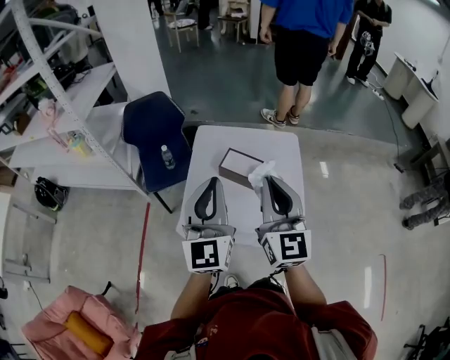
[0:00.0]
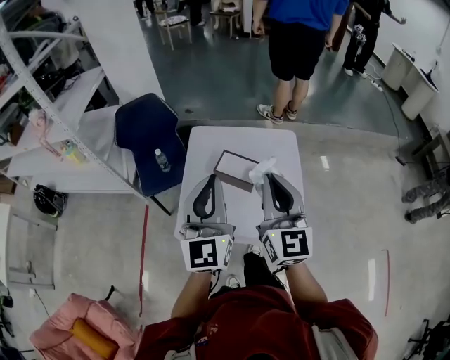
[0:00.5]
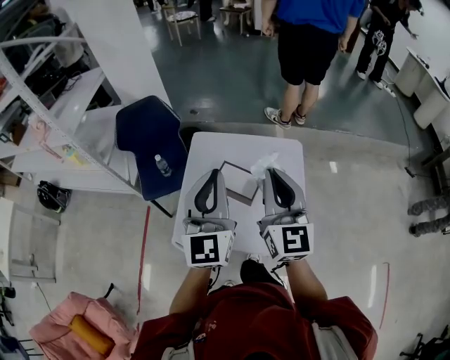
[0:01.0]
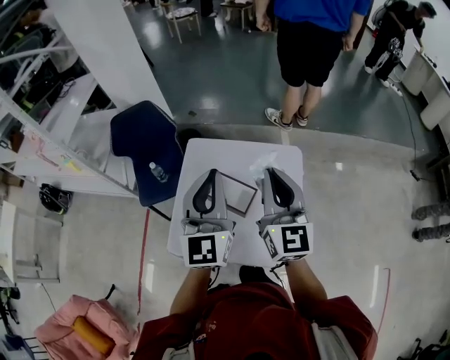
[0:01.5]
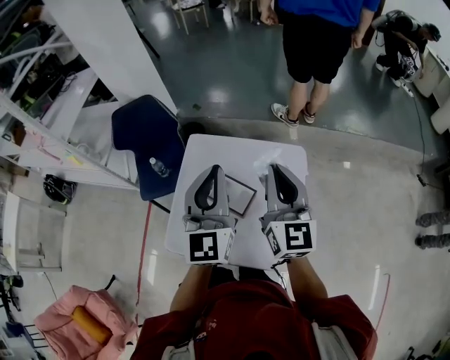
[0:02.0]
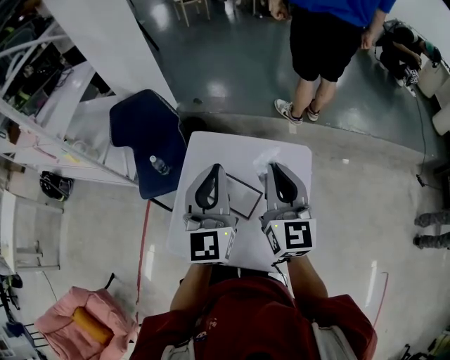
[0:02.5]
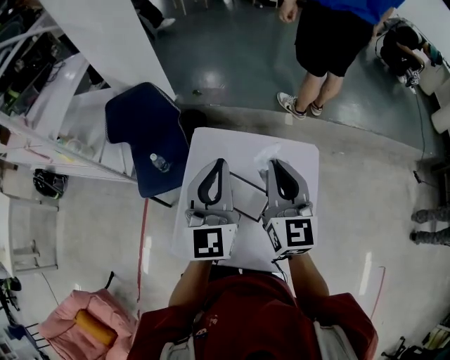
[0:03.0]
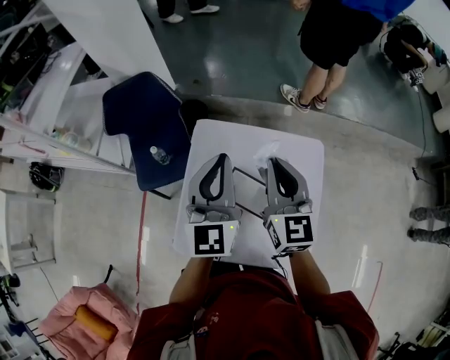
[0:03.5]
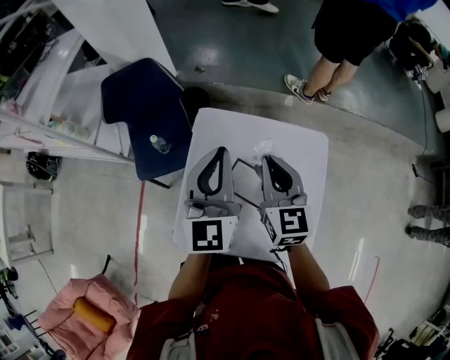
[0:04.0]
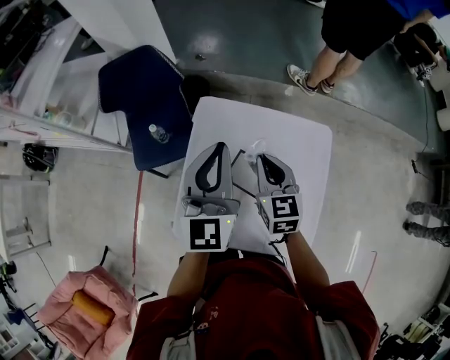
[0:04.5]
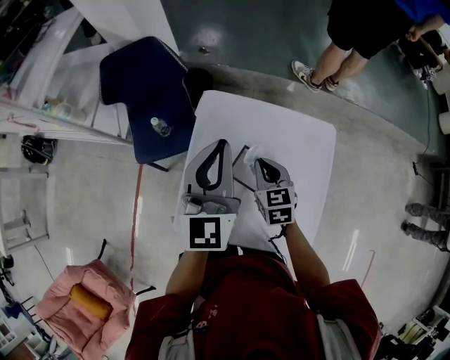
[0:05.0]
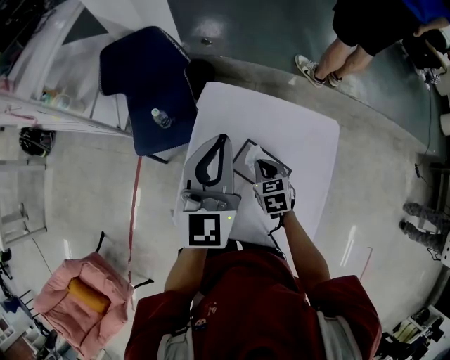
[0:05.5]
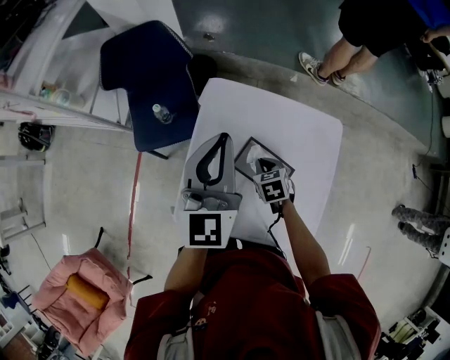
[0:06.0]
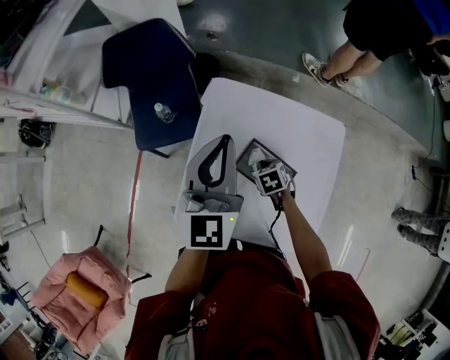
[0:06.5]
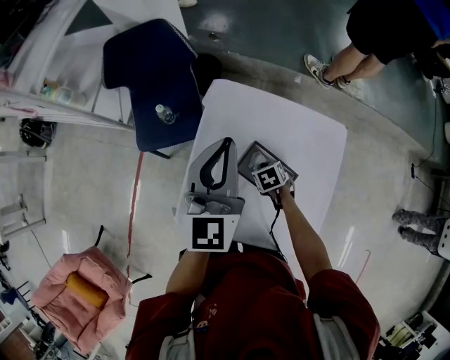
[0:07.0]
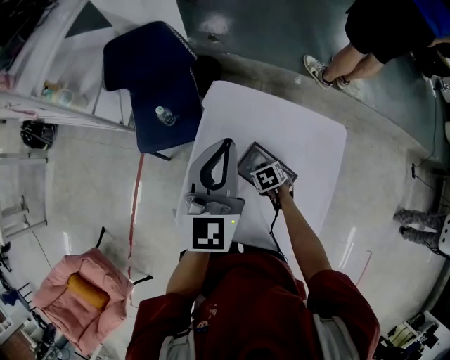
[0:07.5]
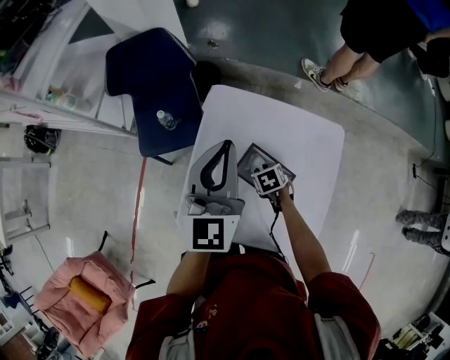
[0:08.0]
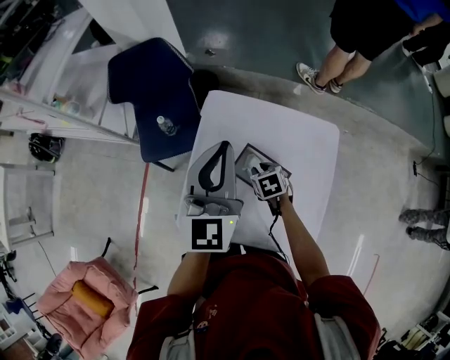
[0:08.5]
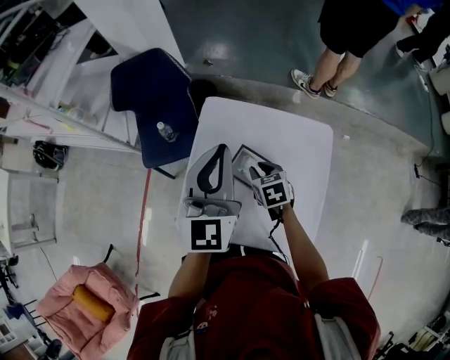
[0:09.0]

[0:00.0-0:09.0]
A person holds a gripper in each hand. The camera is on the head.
0:00.0 to 0:02.0: The two grippers go approximately 30 cm forward and to the right.
0:02.0 to 0:04.5: The right gripper goes roughly 25 cm downward, to the left and forward, and changes its angle by roughly 30 degrees. The left gripper moves to the left, forward and downward, some 20 cm.
0:04.5 to 0:07.0: The right gripper is displaced downward by approximately 30 cm, and points its fingers some 50 degrees further downward. The left gripper shifts by approximately 5 cm.
0:07.0 to 0:09.0: The right gripper shifts approximately 15 cm upward, turns by about 20 degrees, and opens up. The left gripper shifts by roughly 10 cm.

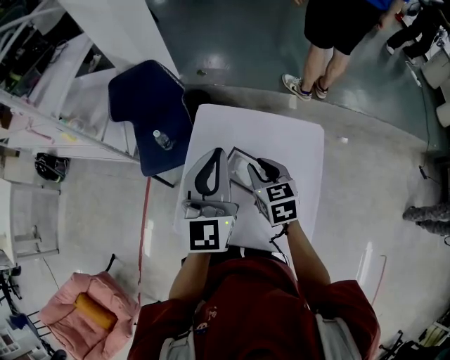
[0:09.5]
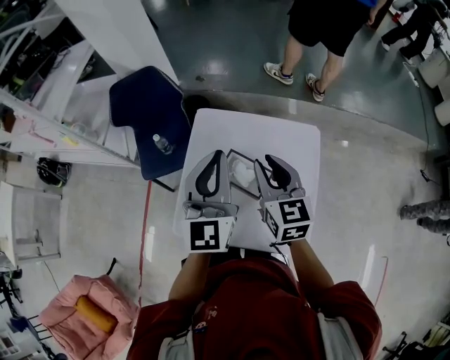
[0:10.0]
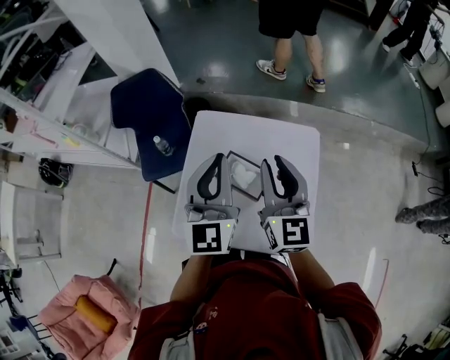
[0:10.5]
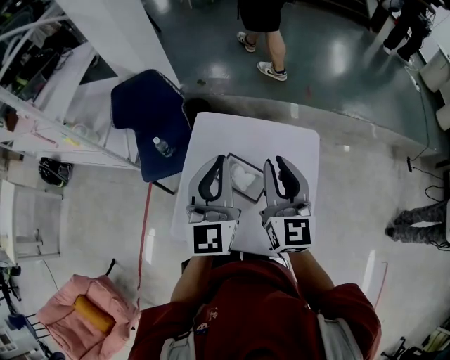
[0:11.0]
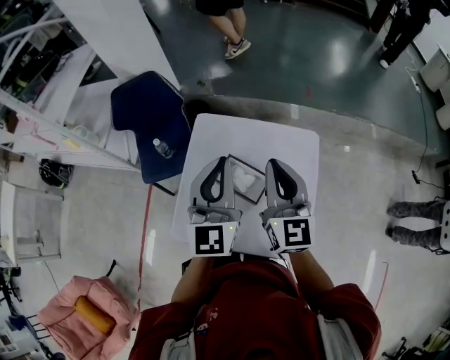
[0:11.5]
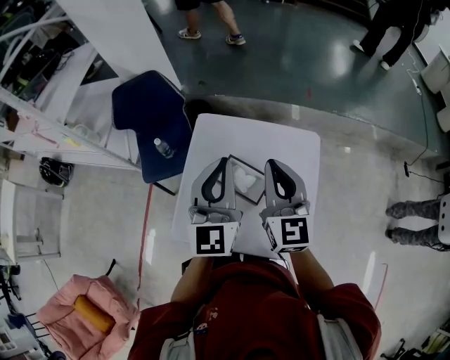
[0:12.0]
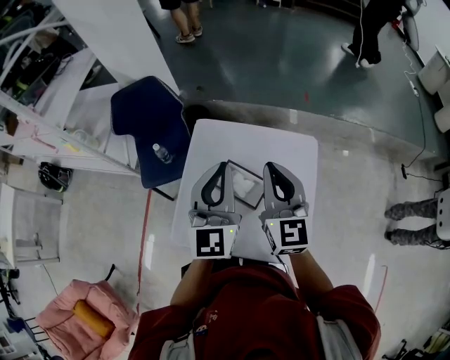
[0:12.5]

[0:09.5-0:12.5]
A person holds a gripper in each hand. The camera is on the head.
0:09.5 to 0:11.0: The right gripper is displaced upward and to the right by about 15 cm, and points its fingers roughly 30 degrees further upward.
0:11.0 to 0:12.5: The grippers stay close to where they were, moving slightly.

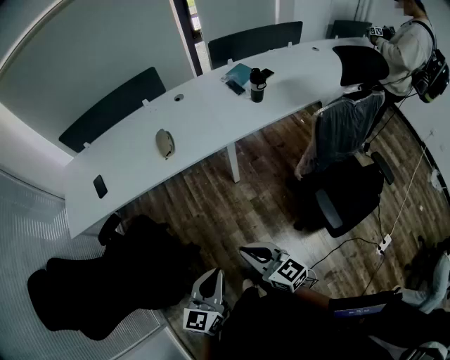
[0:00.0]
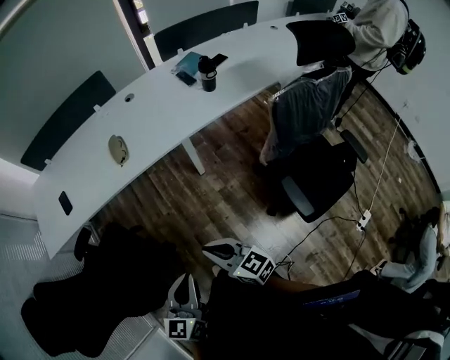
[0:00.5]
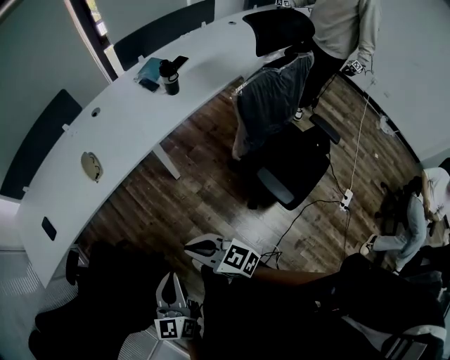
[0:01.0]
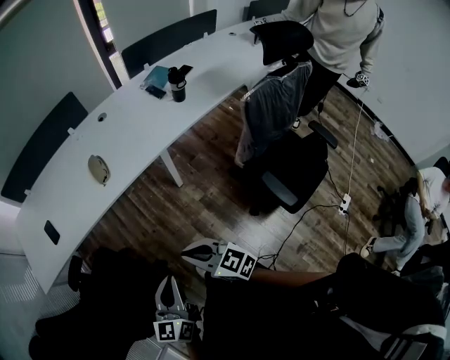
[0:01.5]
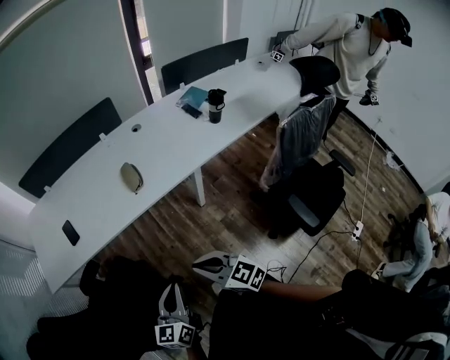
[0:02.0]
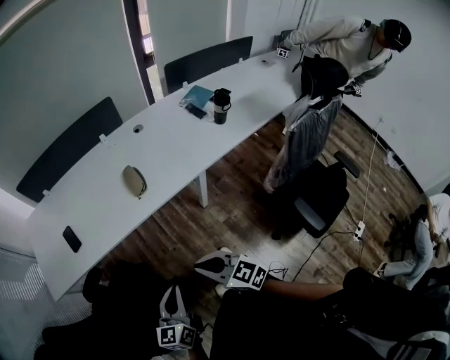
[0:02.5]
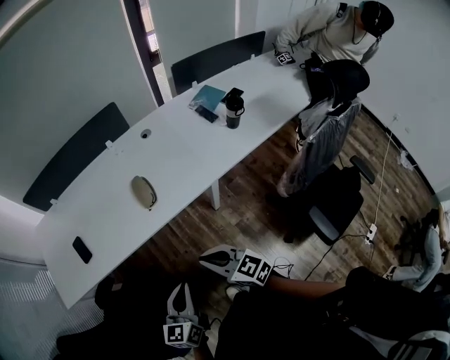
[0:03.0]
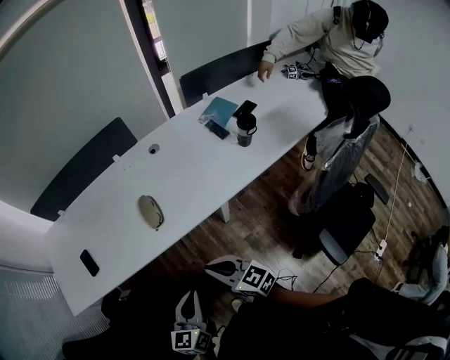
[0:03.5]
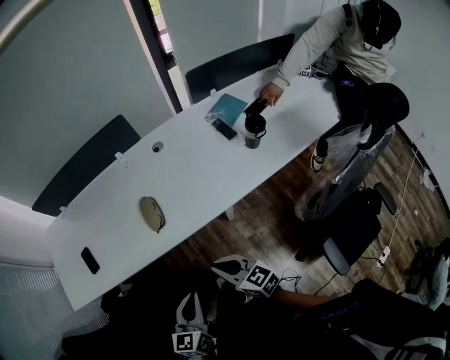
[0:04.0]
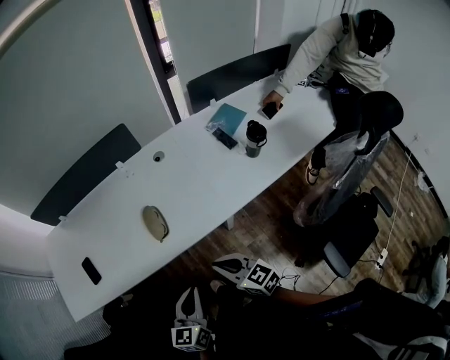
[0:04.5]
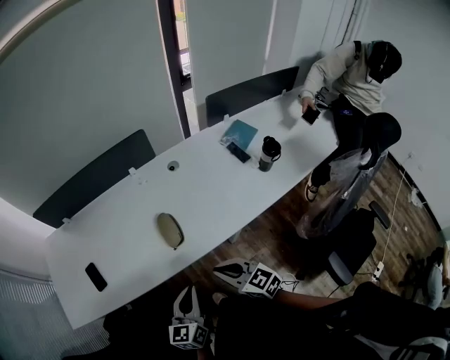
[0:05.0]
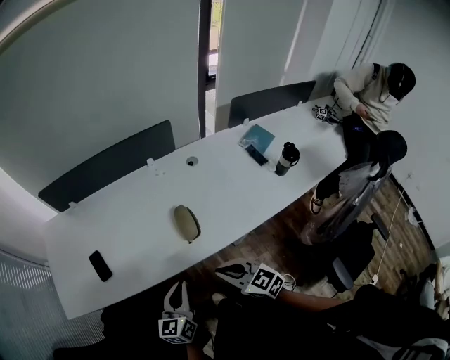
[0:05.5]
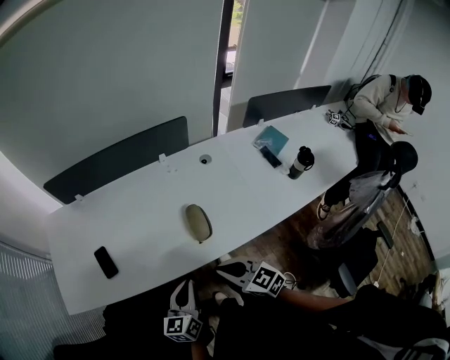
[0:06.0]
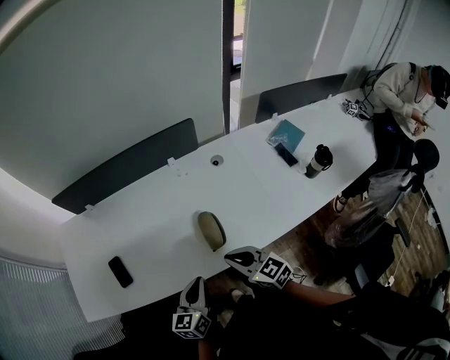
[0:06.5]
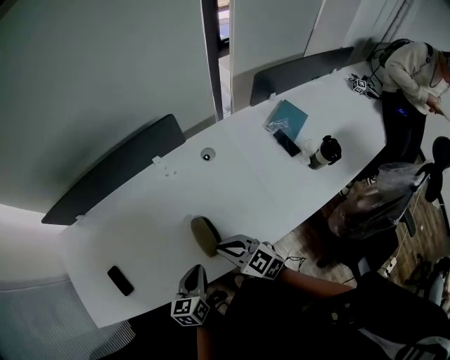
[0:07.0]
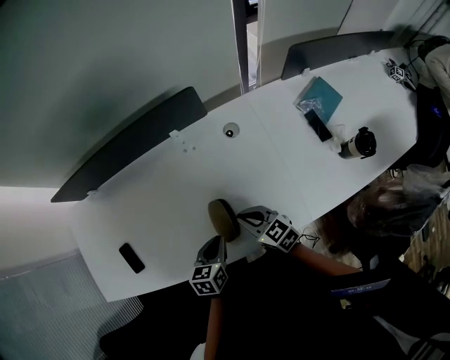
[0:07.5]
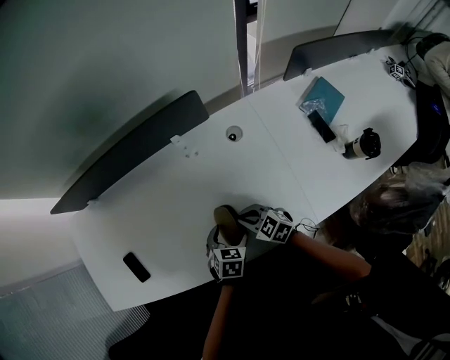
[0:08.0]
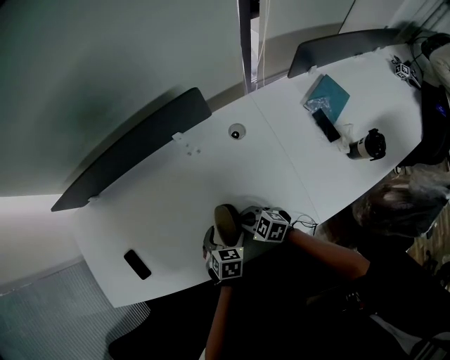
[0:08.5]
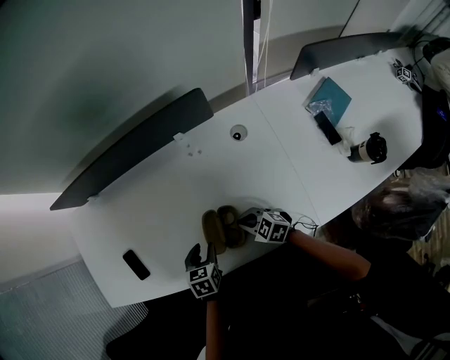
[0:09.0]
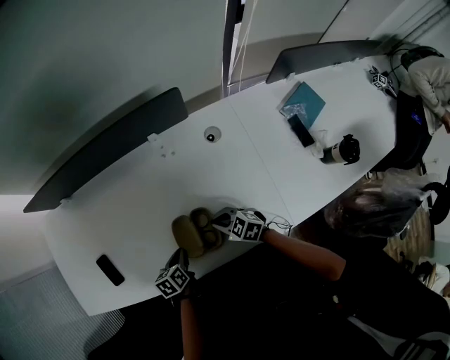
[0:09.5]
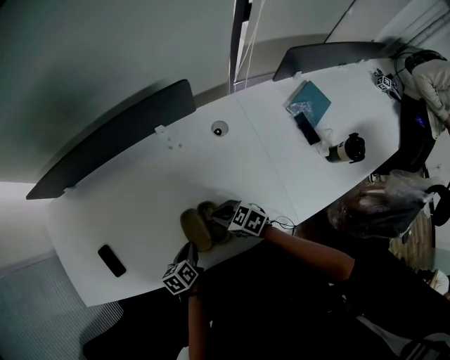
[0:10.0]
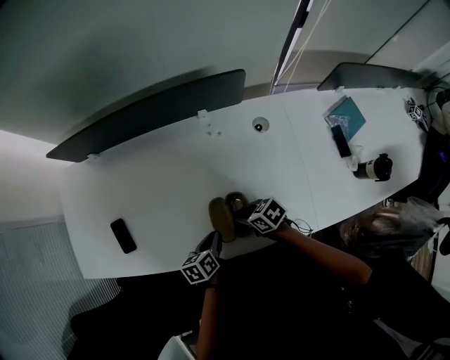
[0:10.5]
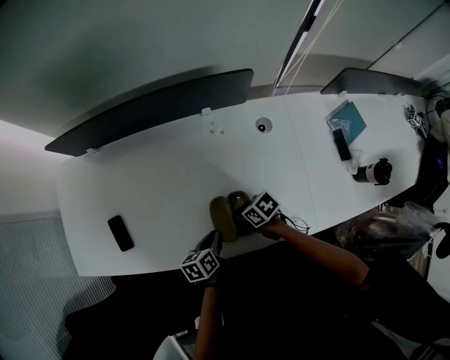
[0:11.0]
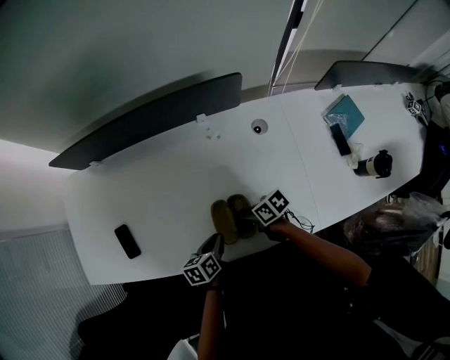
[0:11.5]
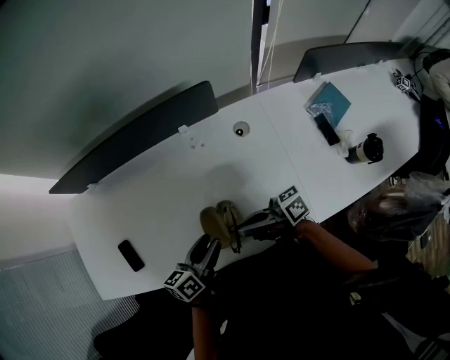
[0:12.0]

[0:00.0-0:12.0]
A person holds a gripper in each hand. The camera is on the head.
0:00.0 to 0:02.0: The grippers both shift to the left and forward by some 20 cm.
0:02.0 to 0:04.0: Both grippers travel together forward and to the right, approximately 25 cm.
0:04.0 to 0:06.0: The two grippers go approximately 20 cm to the left and forward.
0:06.0 to 0:08.0: Both grippers travel together forward, downward and to the right, about 30 cm. The left gripper points its fingers roughly 50 degrees further downward, and opens up.
0:08.0 to 0:10.0: The left gripper shifts approximately 10 cm to the left, rotates around the line of its fingers by roughly 40 degrees, counterclockwise from behind, and closes.
0:10.0 to 0:12.0: Both grippers move upward, about 15 cm. The left gripper angles its fingers upward, by some 30 degrees, and opens its fingers, while the right gripper tips its fingers upward by some 50 degrees.

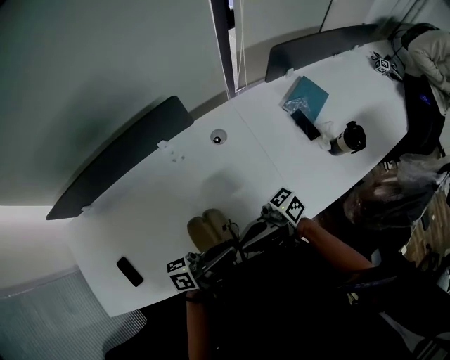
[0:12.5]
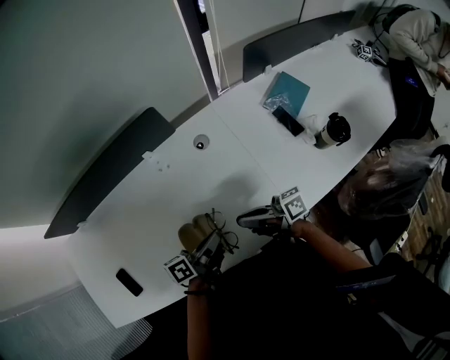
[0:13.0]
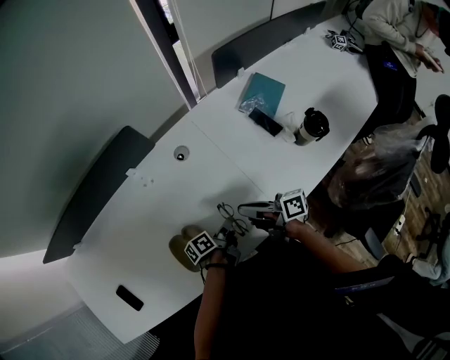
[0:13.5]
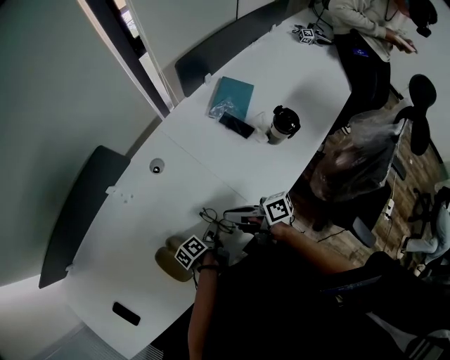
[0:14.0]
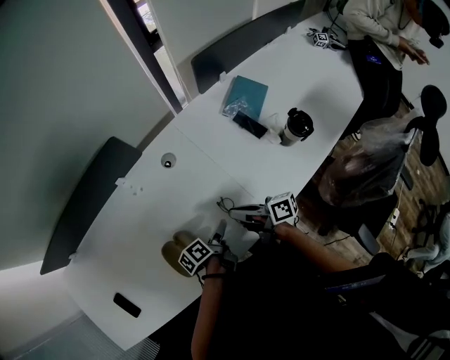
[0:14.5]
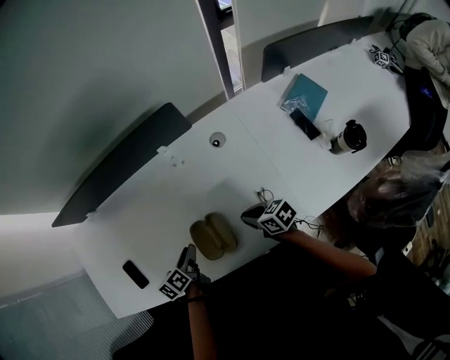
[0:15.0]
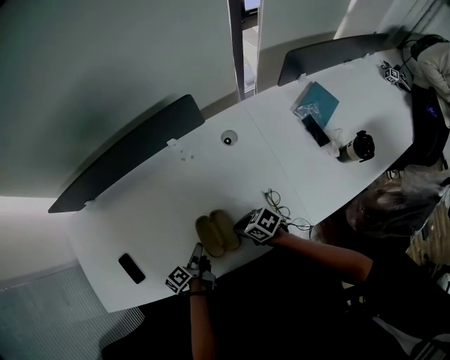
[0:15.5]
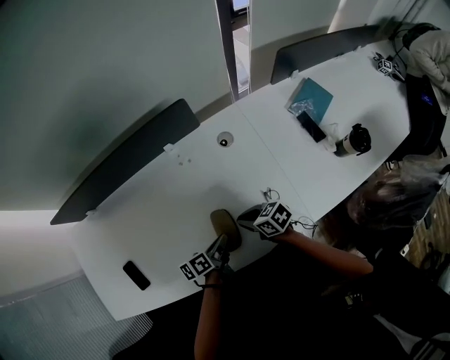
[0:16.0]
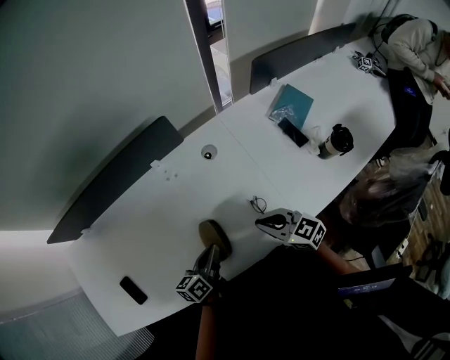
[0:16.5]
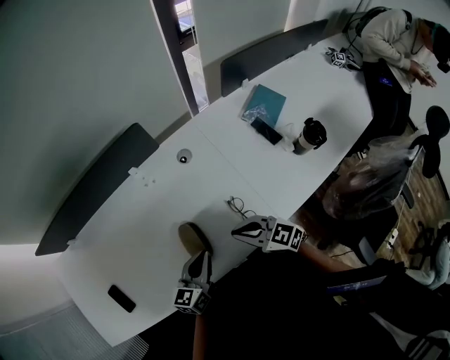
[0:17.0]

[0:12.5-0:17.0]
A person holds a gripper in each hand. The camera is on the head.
0:12.5 to 0:14.5: The left gripper travels downward by about 20 cm, tilts its fingers some 40 degrees downward, and opens up. Meanwhile the right gripper shifts by roughly 20 cm, and tilts its fingers some 30 degrees downward.
0:14.5 to 0:17.0: The left gripper rotates around the line of its fingers by about 60 degrees, clockwise from behind, and closes up, while the right gripper reaches some 10 cm downward, then returns, and rolls counterclockwise, seen from behind, by about 60 degrees.
